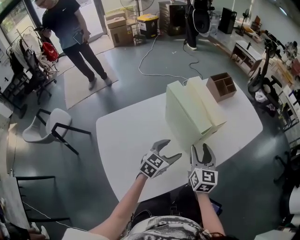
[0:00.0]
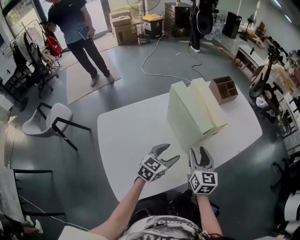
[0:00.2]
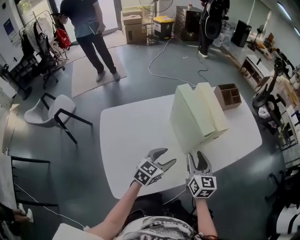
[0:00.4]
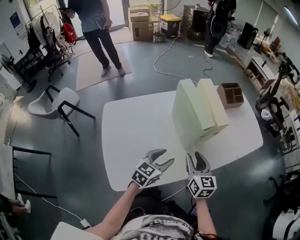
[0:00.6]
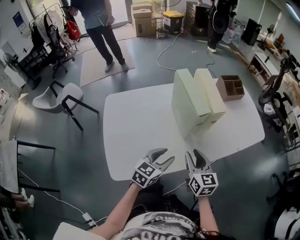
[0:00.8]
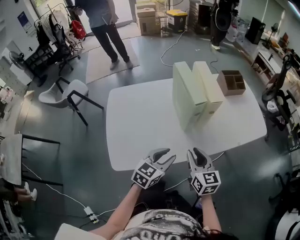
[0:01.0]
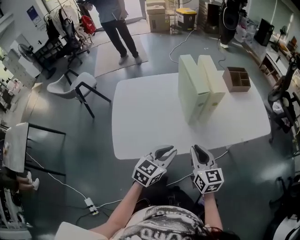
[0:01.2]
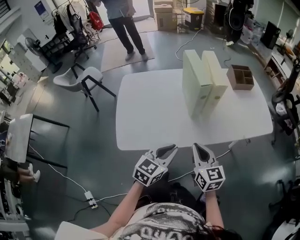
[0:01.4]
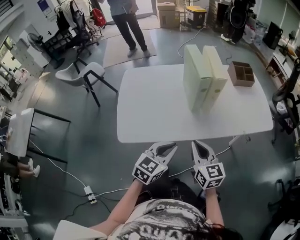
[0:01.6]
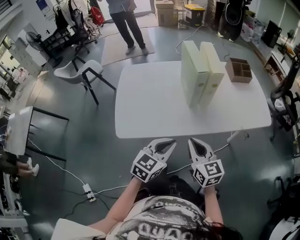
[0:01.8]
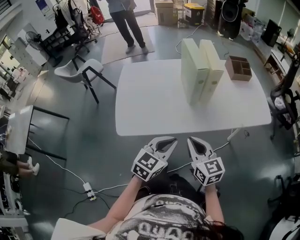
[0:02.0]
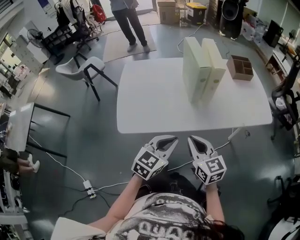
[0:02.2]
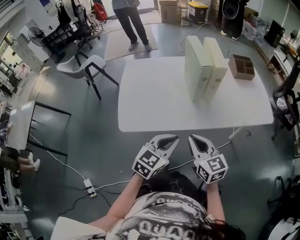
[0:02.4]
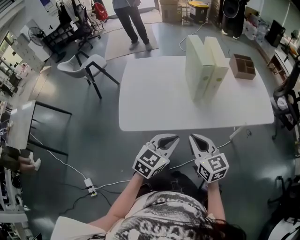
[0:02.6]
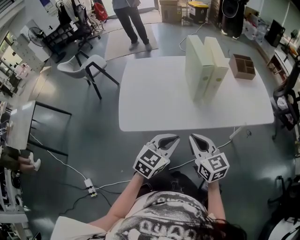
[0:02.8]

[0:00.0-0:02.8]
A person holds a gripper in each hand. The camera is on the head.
0:00.0 to 0:01.4: The right gripper shifts by some 20 cm, turns by about 40 degrees, and closes, while the left gripper ends up some 25 cm from where it was, rotates some 30 degrees, and closes its fingers.
0:01.4 to 0:02.8: The two grippers go about 5 cm backward.

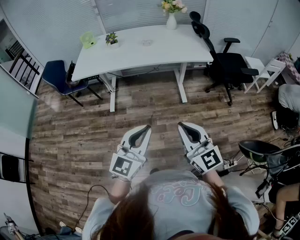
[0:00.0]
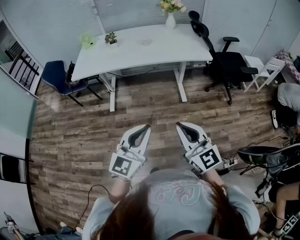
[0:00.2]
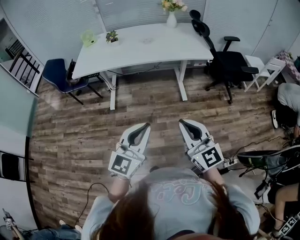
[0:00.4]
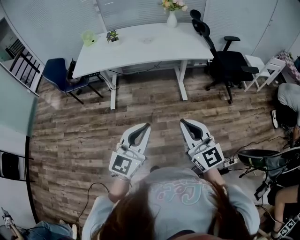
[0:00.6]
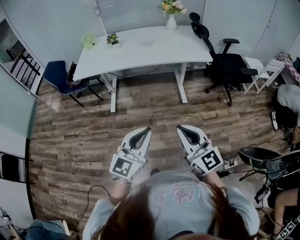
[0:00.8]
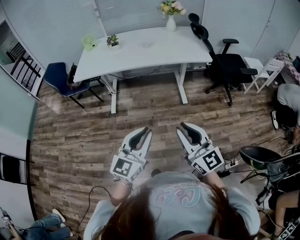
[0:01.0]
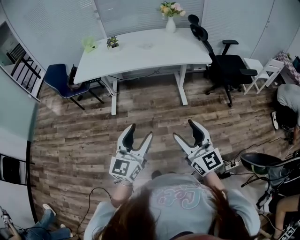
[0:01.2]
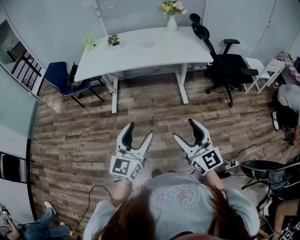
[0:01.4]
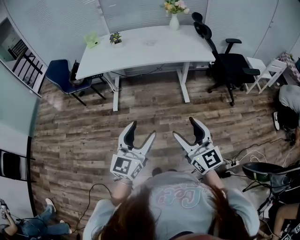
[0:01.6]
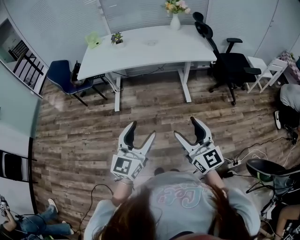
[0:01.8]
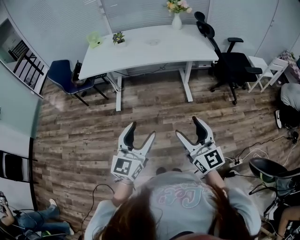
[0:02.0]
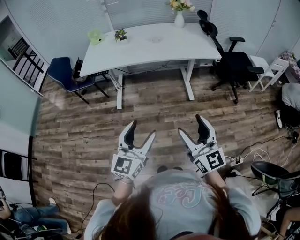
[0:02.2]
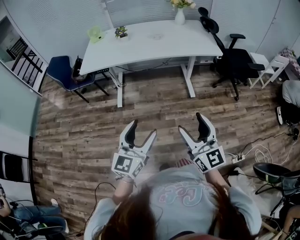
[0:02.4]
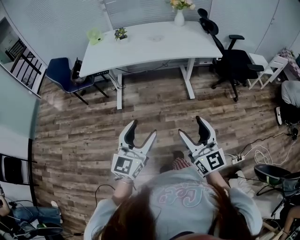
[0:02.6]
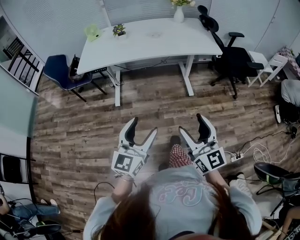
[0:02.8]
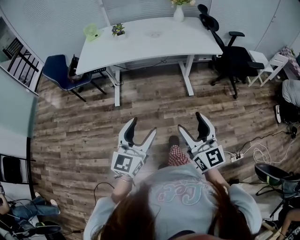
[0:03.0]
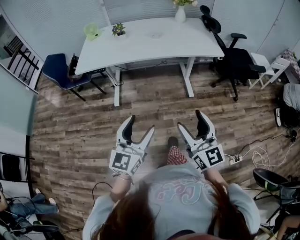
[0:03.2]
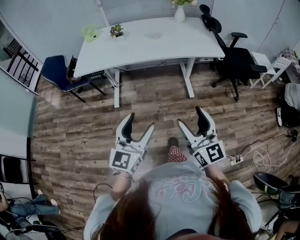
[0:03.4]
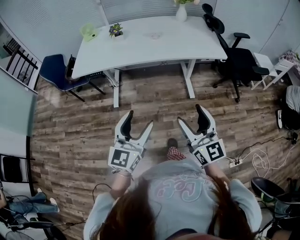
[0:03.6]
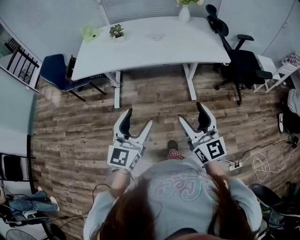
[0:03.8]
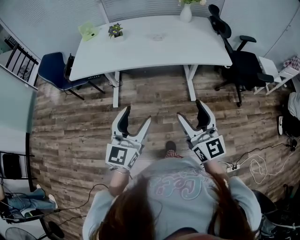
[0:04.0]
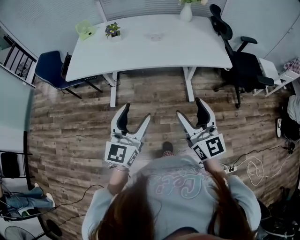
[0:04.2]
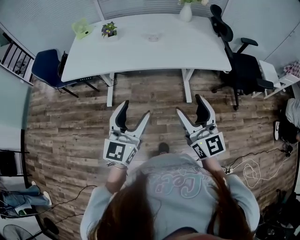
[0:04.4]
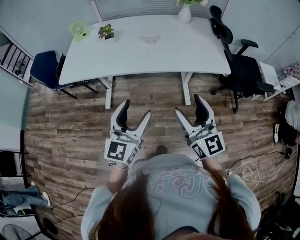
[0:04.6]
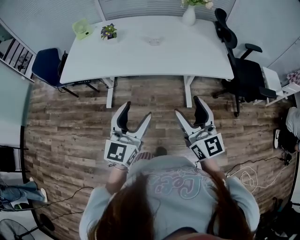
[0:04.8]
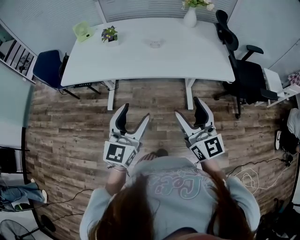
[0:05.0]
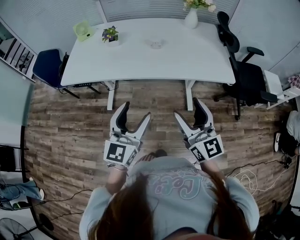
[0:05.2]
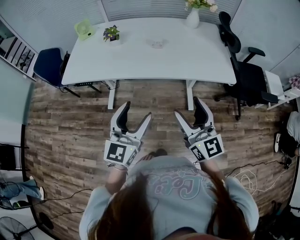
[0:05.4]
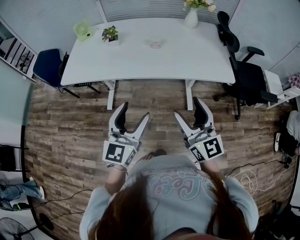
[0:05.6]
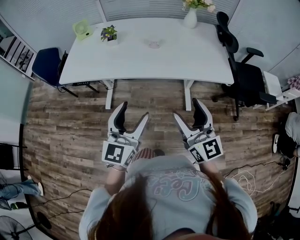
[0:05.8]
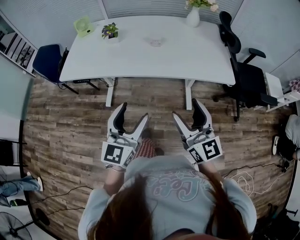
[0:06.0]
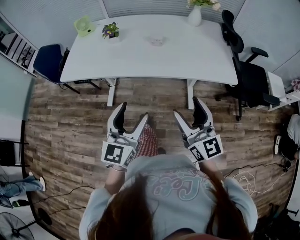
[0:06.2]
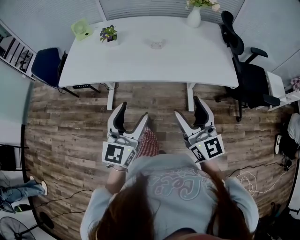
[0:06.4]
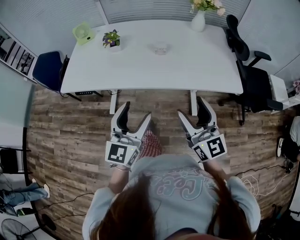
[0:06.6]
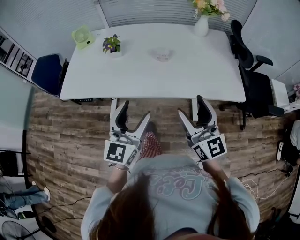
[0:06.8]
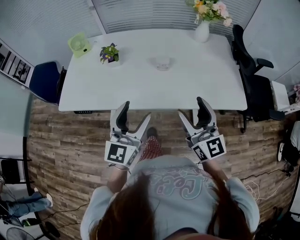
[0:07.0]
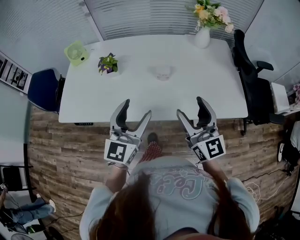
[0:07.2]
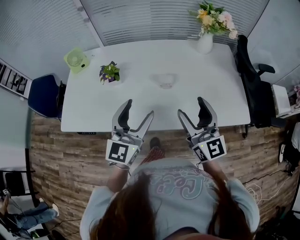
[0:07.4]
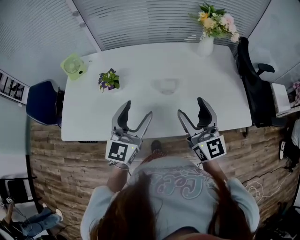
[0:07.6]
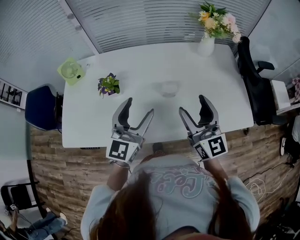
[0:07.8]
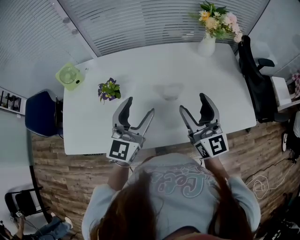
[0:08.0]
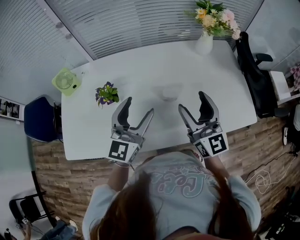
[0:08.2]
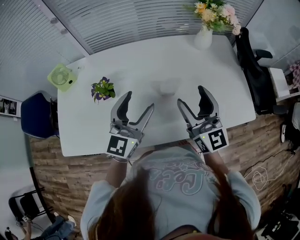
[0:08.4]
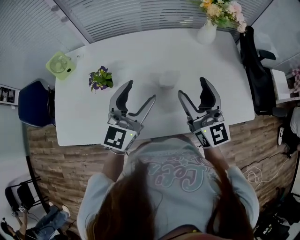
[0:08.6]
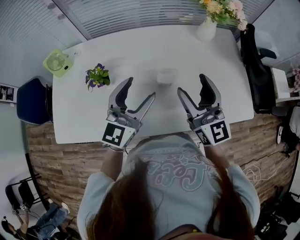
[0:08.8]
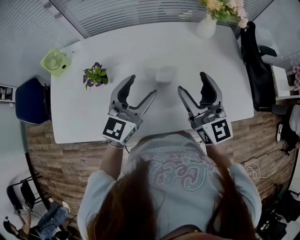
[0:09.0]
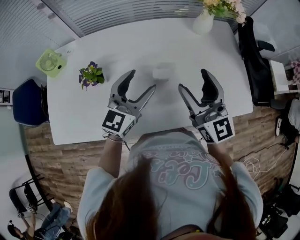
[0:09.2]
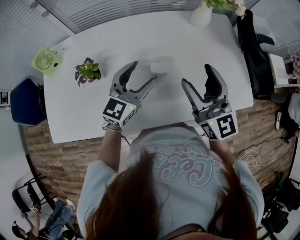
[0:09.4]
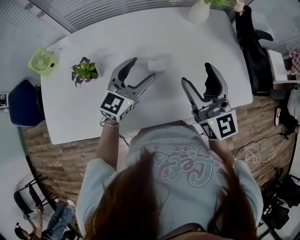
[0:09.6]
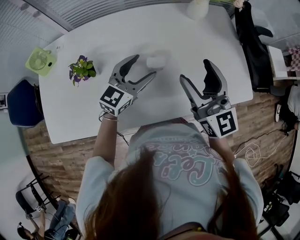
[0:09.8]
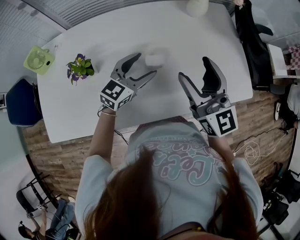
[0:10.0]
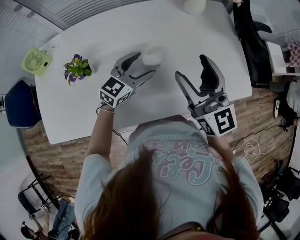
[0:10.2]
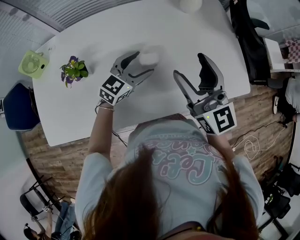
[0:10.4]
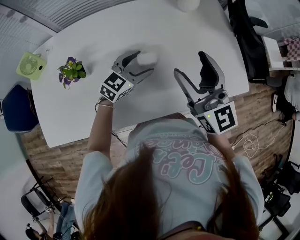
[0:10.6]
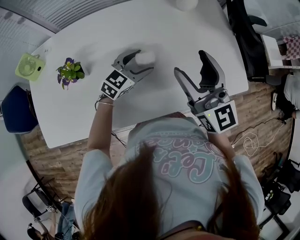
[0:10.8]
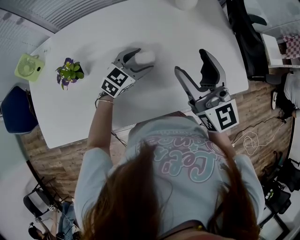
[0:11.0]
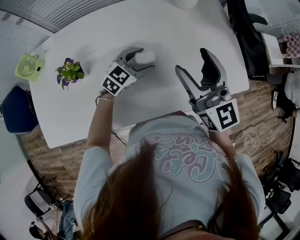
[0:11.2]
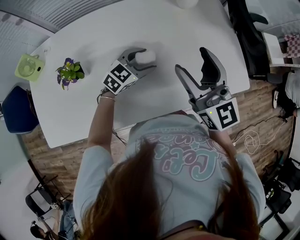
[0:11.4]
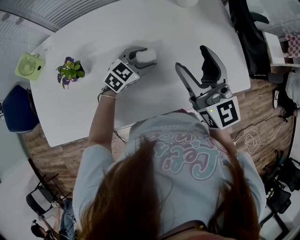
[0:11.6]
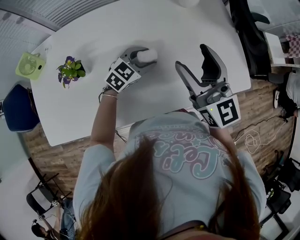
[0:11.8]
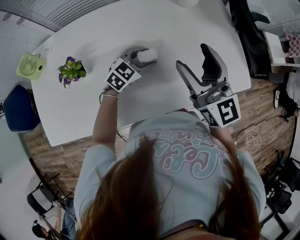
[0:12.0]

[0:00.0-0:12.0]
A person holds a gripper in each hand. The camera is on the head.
0:00.0 to 0:01.6: The right gripper opens up. Meanwhile the left gripper opens.
0:01.6 to 0:03.0: The two grippers go approximately 5 cm to the left.
0:03.0 to 0:04.4: Both grippers travel together forward, roughly 25 cm.
0:04.4 to 0:06.0: Both grippers travel together forward, about 5 cm.
0:06.0 to 0:07.6: The grippers both shift forward by roughly 35 cm.
0:07.6 to 0:09.0: The two grippers go approximately 10 cm forward.
0:09.0 to 0:10.4: The left gripper is displaced downward and forward by roughly 15 cm, and turns by some 30 degrees.
0:10.4 to 0:12.0: The left gripper moves approximately 5 cm.

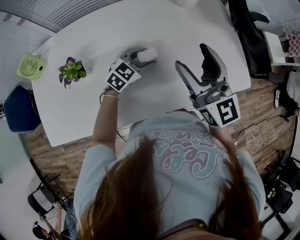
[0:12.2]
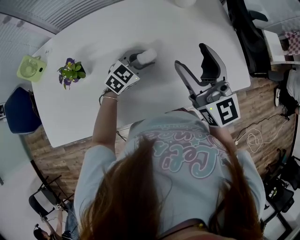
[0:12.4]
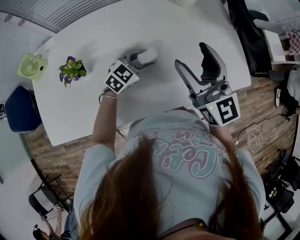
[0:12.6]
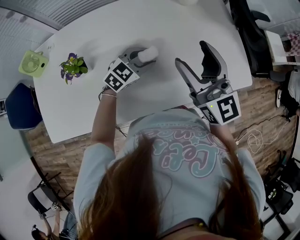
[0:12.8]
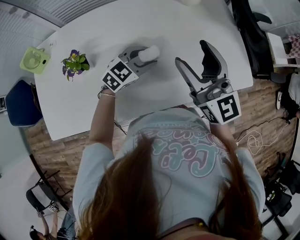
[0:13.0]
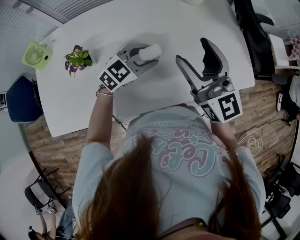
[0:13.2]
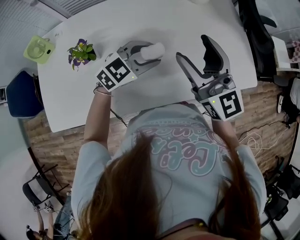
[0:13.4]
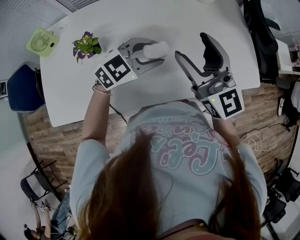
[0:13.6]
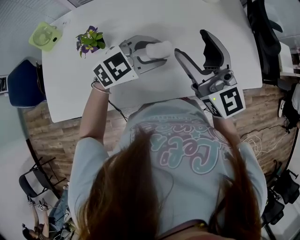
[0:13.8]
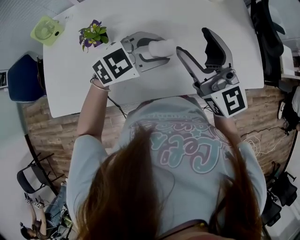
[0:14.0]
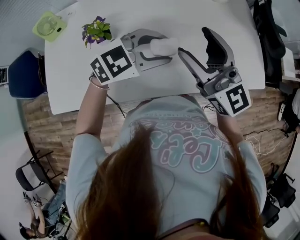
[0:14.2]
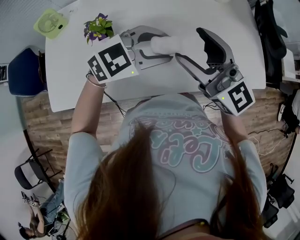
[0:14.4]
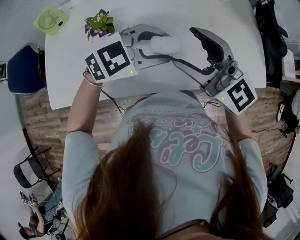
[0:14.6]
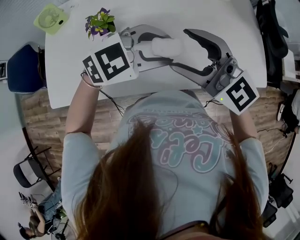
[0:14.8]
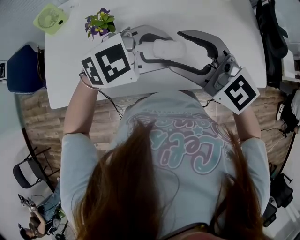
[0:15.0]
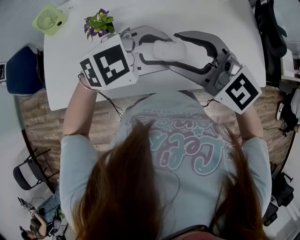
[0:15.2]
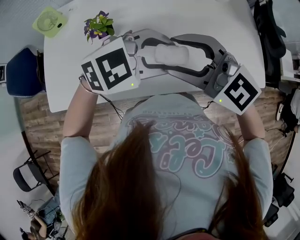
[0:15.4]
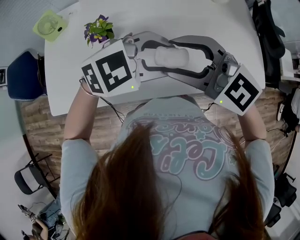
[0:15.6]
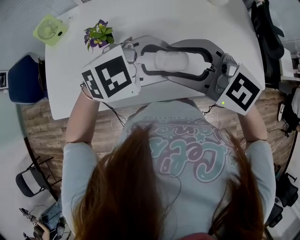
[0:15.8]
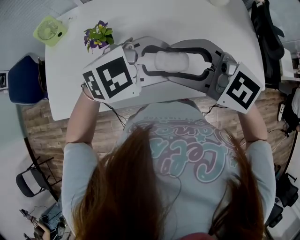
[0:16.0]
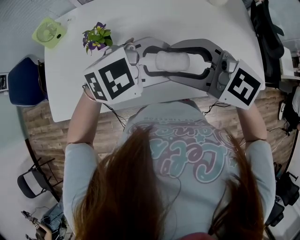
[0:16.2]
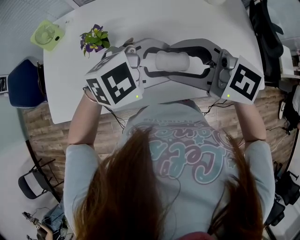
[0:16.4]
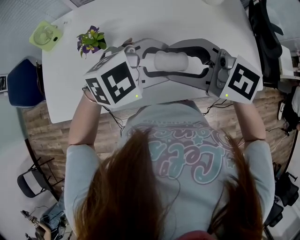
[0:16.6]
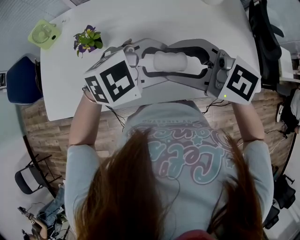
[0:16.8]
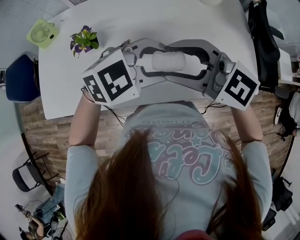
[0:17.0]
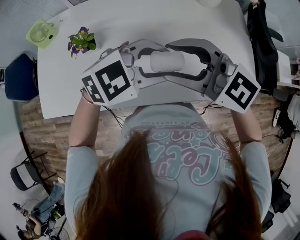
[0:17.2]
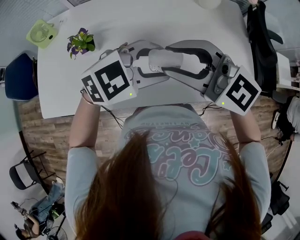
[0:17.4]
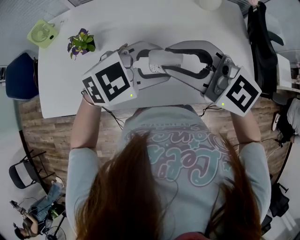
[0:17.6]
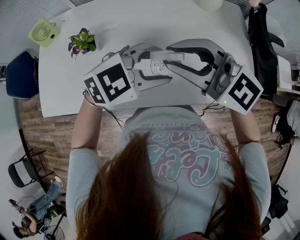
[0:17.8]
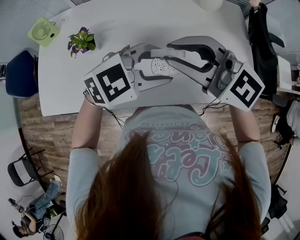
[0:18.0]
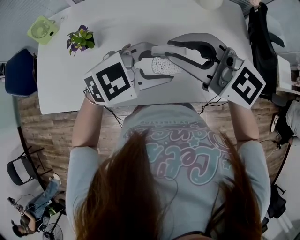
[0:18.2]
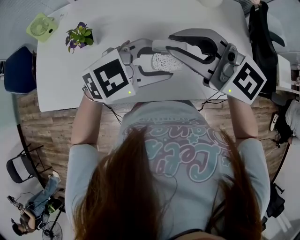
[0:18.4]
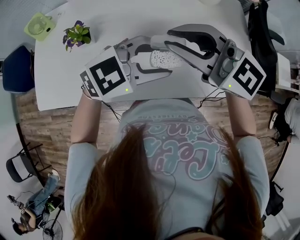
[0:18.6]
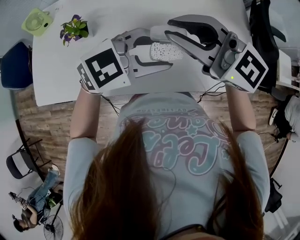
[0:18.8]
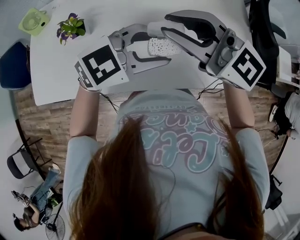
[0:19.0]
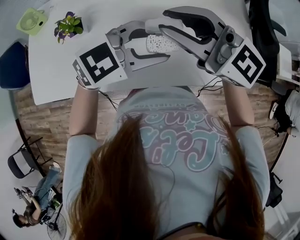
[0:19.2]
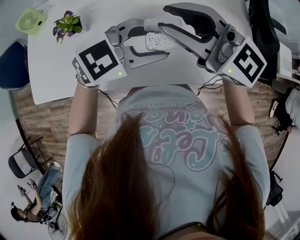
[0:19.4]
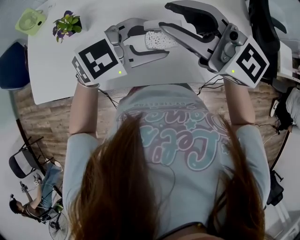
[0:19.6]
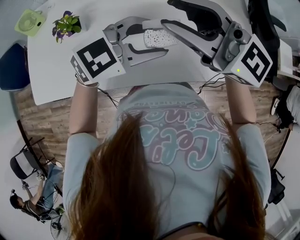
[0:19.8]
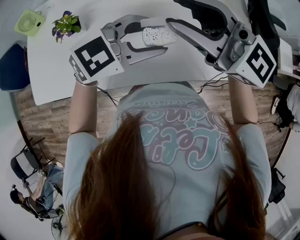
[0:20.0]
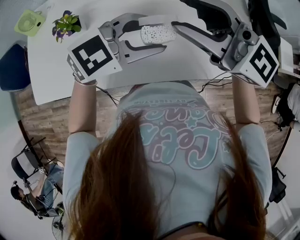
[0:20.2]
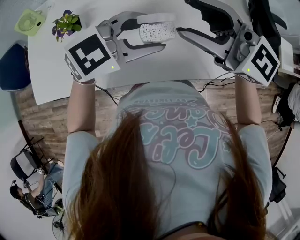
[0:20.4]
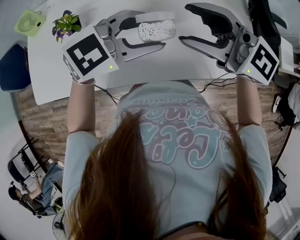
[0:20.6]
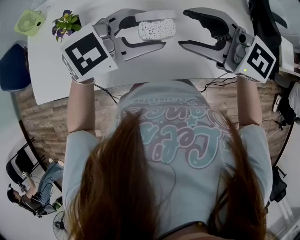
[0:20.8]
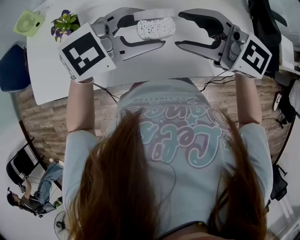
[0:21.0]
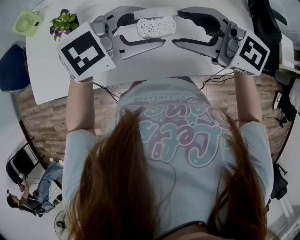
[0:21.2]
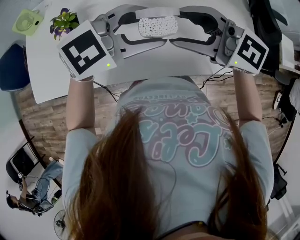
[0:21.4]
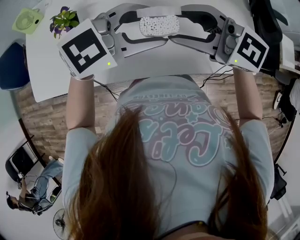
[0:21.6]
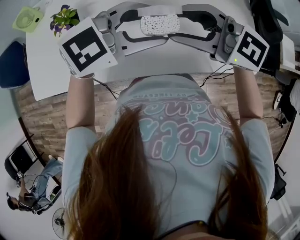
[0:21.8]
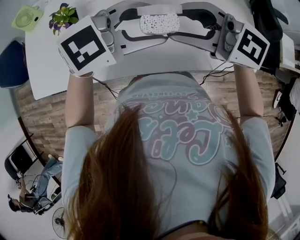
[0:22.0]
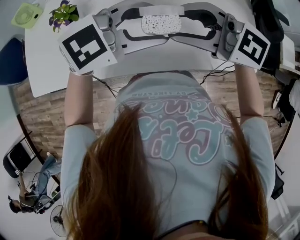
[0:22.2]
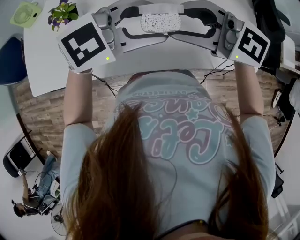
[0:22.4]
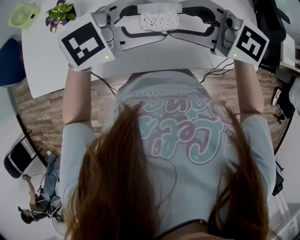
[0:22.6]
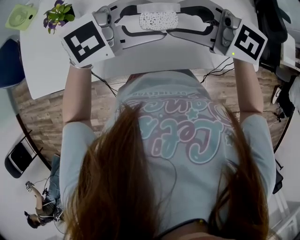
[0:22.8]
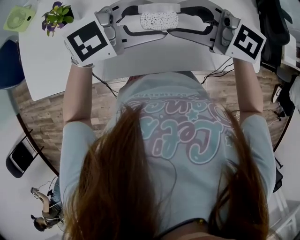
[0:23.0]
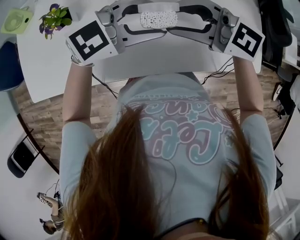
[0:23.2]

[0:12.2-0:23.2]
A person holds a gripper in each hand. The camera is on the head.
0:12.2 to 0:13.8: The left gripper shifts some 15 cm upward and backward; the right gripper travels to the left and backward by roughly 10 cm.
0:13.8 to 0:15.4: The left gripper shifts by about 10 cm, while the right gripper ends up about 10 cm from where it was, and rotates some 40 degrees.
0:15.4 to 0:17.0: The left gripper moves some 5 cm; the right gripper ends up about 5 cm from where it was.
0:17.0 to 0:18.4: The right gripper ends up about 5 cm from where it was, and closes its fingers.
0:18.4 to 0:20.0: There are only small adjustments of the grippers.
0:20.0 to 0:21.6: The right gripper shifts roughly 10 cm downward.
0:21.6 to 0:23.2: The grippers make only small movements.
